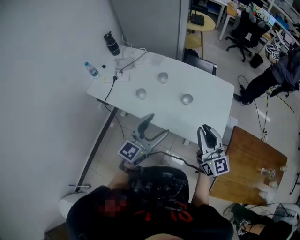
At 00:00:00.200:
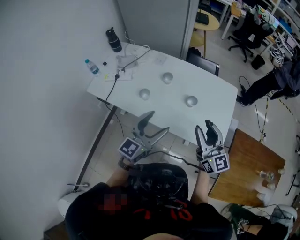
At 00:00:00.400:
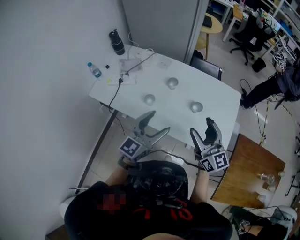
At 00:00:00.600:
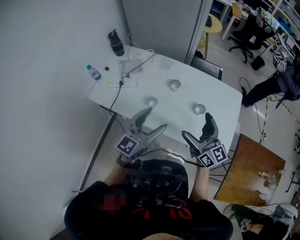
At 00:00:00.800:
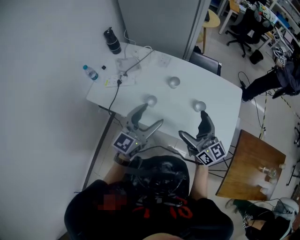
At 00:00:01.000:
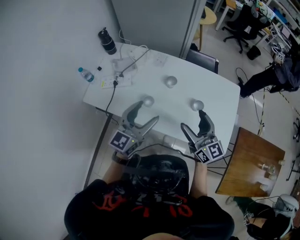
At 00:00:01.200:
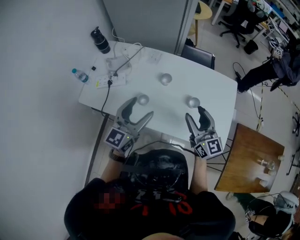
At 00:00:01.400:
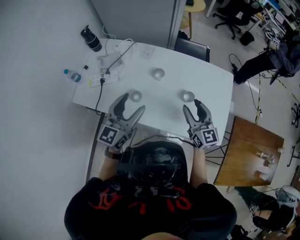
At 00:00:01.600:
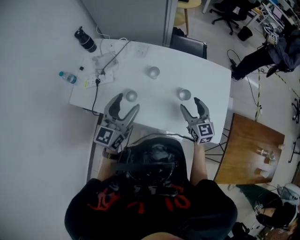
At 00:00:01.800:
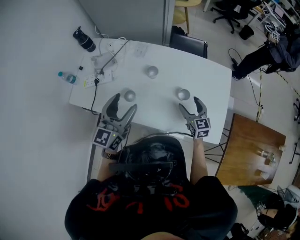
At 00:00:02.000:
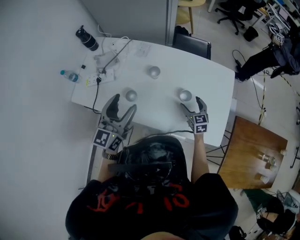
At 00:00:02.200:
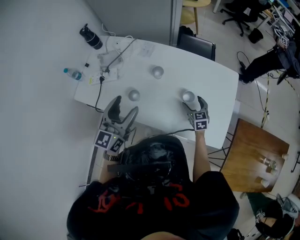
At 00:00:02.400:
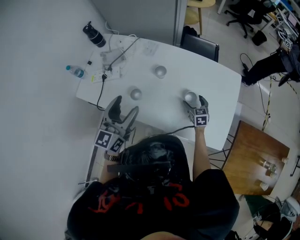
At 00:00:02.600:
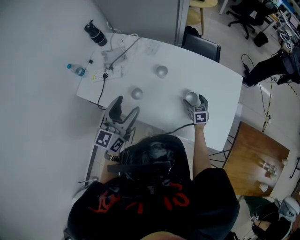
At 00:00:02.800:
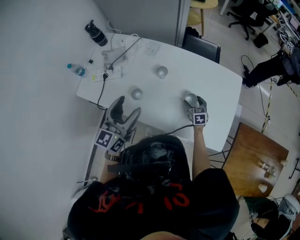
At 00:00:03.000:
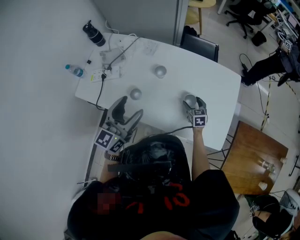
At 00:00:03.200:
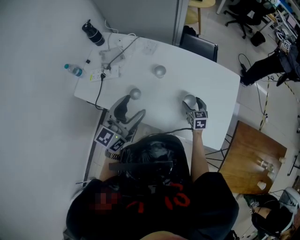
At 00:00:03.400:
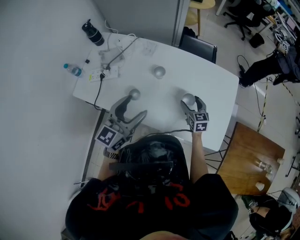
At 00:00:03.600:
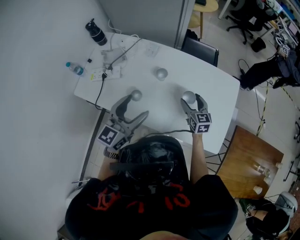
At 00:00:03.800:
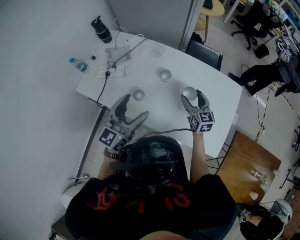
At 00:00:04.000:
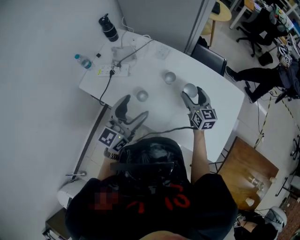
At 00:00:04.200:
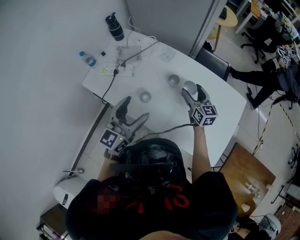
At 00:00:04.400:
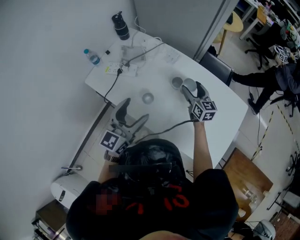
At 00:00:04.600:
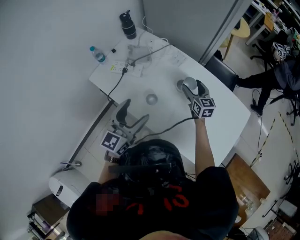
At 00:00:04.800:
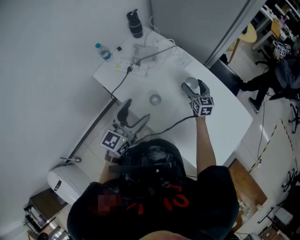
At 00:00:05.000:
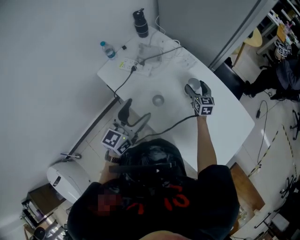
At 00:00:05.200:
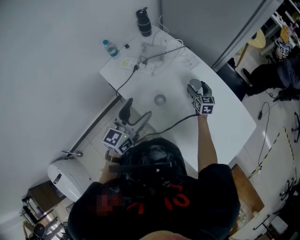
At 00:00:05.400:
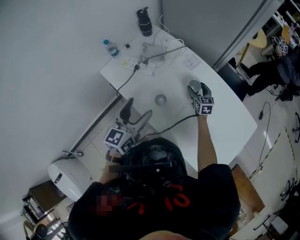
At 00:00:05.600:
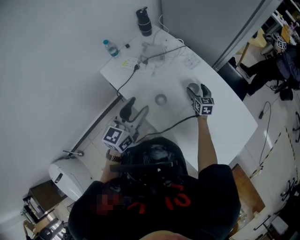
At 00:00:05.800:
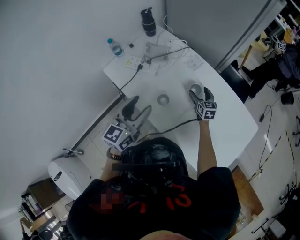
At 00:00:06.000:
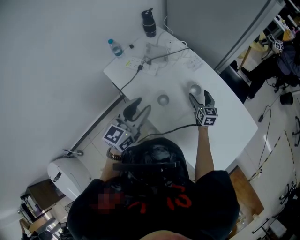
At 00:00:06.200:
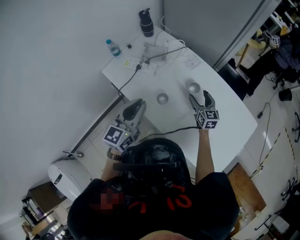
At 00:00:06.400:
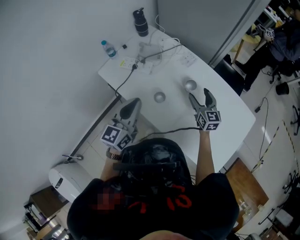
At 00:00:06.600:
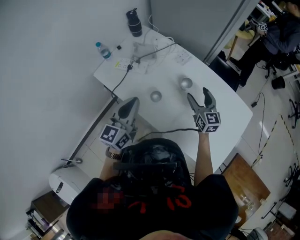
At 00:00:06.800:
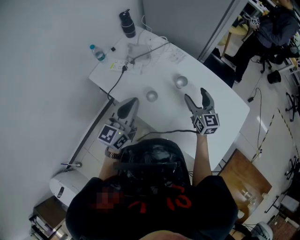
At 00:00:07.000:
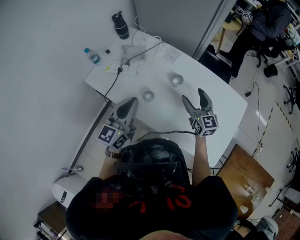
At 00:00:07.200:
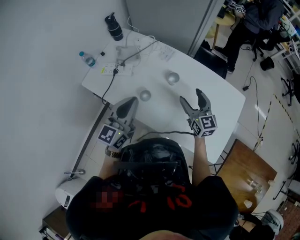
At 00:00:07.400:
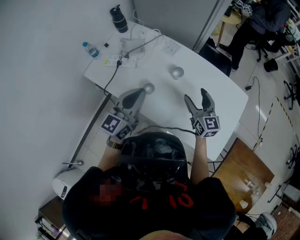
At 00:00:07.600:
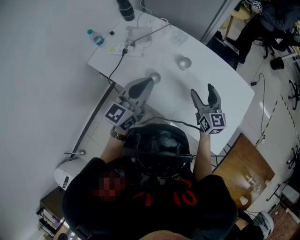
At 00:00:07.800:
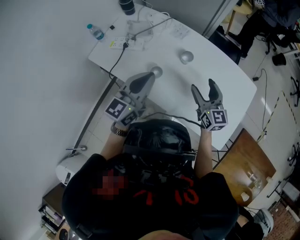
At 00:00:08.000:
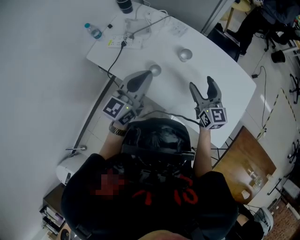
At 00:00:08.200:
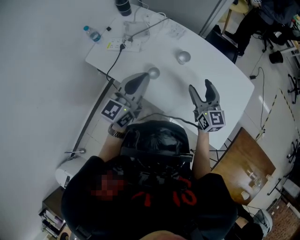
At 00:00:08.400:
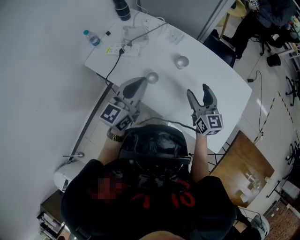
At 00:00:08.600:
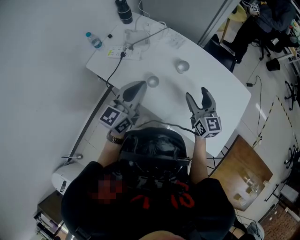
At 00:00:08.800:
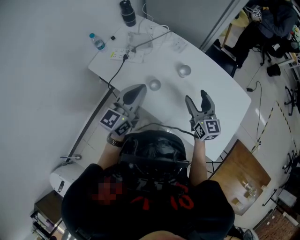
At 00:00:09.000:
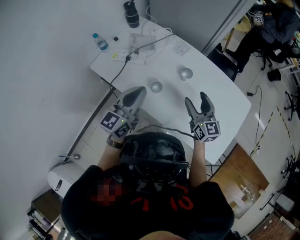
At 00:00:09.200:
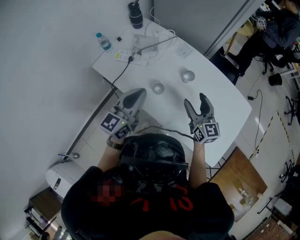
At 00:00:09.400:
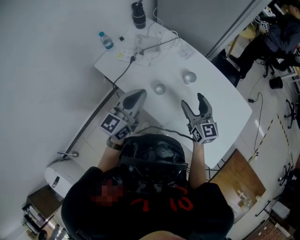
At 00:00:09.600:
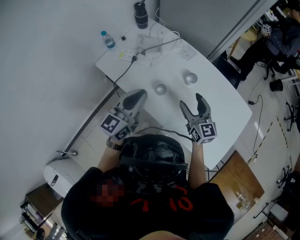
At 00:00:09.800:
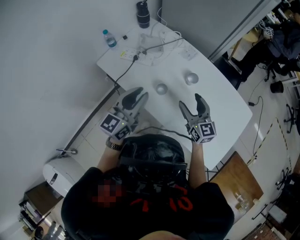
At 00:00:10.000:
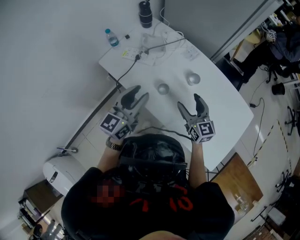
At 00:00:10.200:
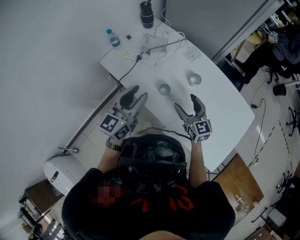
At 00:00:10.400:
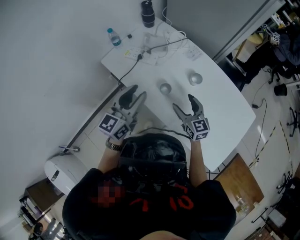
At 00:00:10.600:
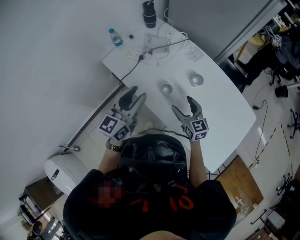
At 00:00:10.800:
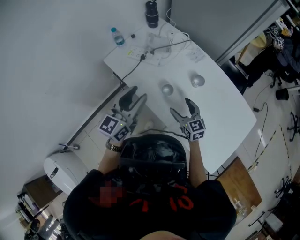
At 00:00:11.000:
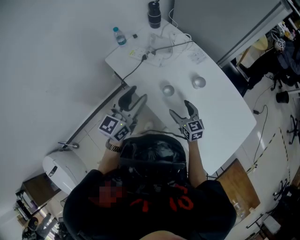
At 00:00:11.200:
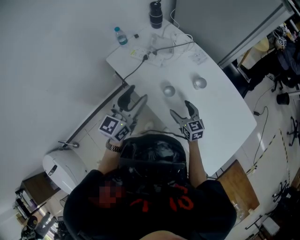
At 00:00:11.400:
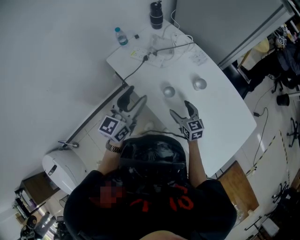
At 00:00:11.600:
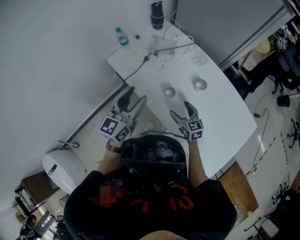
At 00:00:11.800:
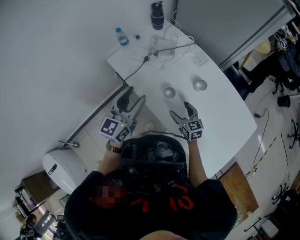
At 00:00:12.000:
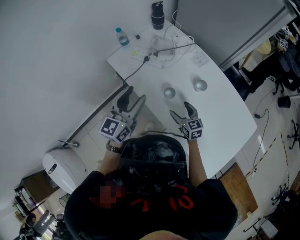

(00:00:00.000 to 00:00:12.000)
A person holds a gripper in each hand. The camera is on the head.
00:00:00.000 - 00:00:01.600: The right gripper moves forward and downward, some 25 cm, turns by roughly 20 degrees, and opens up, while the left gripper goes approximately 25 cm forward and to the left.
00:00:01.600 - 00:00:03.000: The right gripper heads downward, covering roughly 20 cm, and swivels roughly 30 degrees.
00:00:03.000 - 00:00:04.400: The right gripper shifts approximately 25 cm upward, to the left and forward, and turns by approximately 30 degrees.
00:00:04.400 - 00:00:06.000: The left gripper closes its fingers; the right gripper is displaced downward by approximately 10 cm.
00:00:06.000 - 00:00:07.600: The right gripper heads backward and upward, covering about 20 cm. Meanwhile the left gripper moves to the right, approximately 5 cm, and closes its fingers.
00:00:07.600 - 00:00:09.000: The grippers move only a little.
00:00:09.000 - 00:00:10.400: The right gripper goes some 10 cm to the left and downward. Meanwhile the left gripper moves to the left, some 5 cm, and opens its fingers.
00:00:10.400 - 00:00:12.000: The right gripper goes roughly 10 cm downward.

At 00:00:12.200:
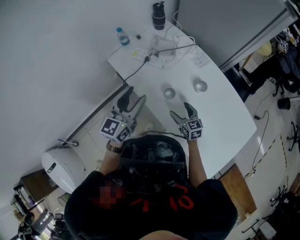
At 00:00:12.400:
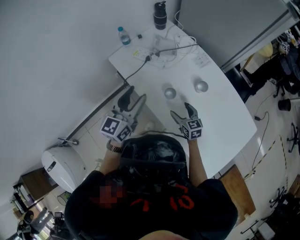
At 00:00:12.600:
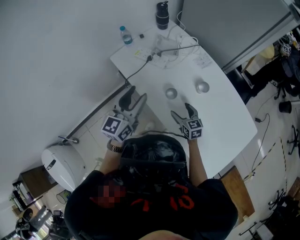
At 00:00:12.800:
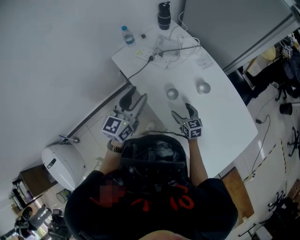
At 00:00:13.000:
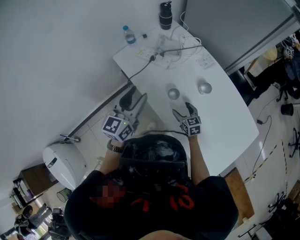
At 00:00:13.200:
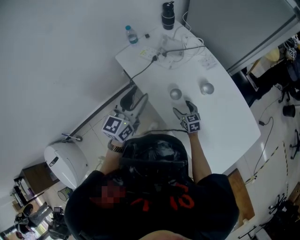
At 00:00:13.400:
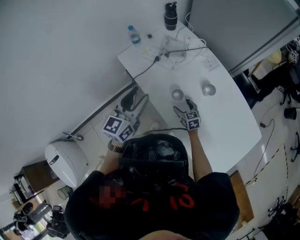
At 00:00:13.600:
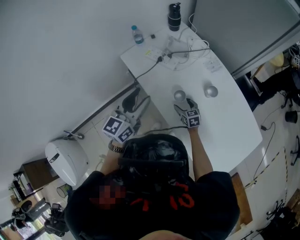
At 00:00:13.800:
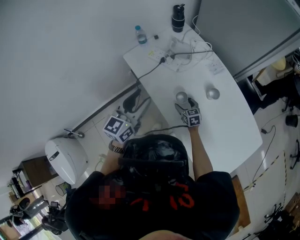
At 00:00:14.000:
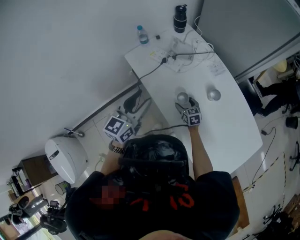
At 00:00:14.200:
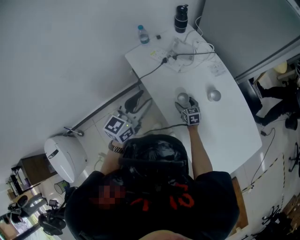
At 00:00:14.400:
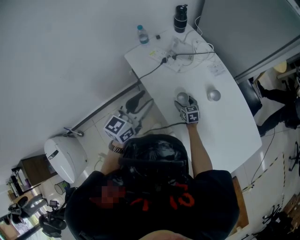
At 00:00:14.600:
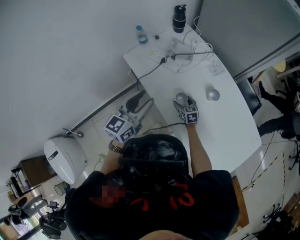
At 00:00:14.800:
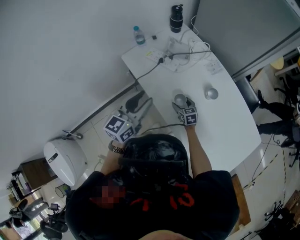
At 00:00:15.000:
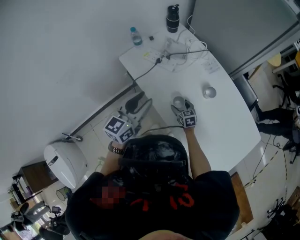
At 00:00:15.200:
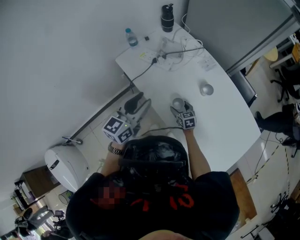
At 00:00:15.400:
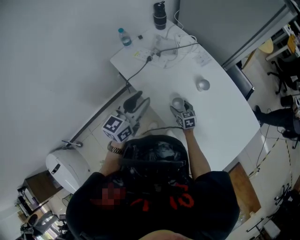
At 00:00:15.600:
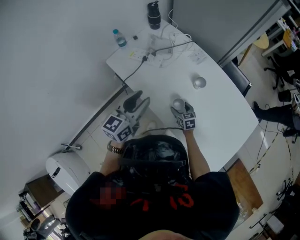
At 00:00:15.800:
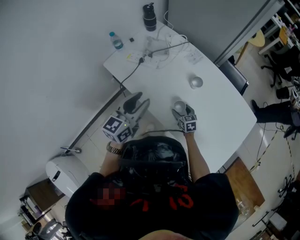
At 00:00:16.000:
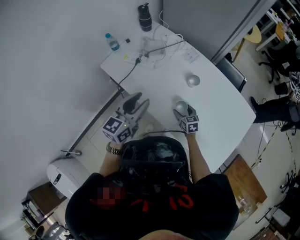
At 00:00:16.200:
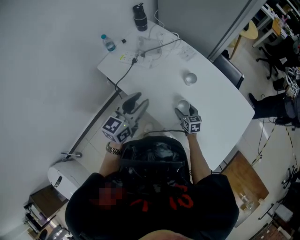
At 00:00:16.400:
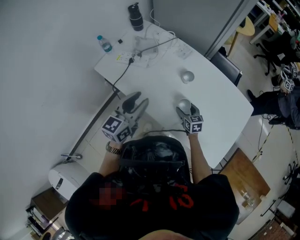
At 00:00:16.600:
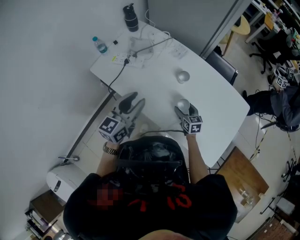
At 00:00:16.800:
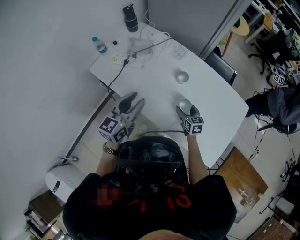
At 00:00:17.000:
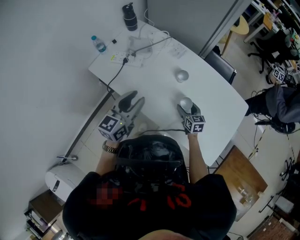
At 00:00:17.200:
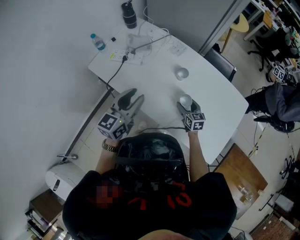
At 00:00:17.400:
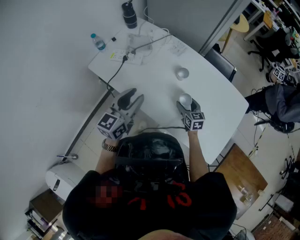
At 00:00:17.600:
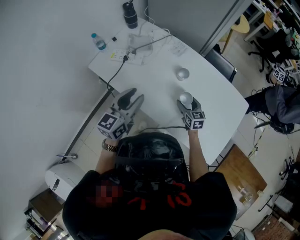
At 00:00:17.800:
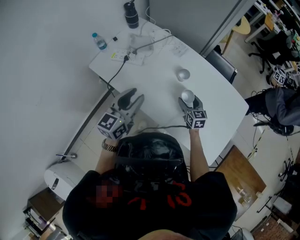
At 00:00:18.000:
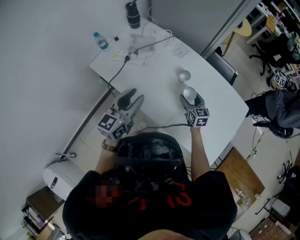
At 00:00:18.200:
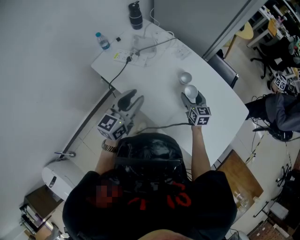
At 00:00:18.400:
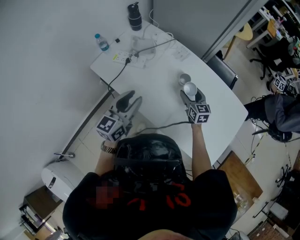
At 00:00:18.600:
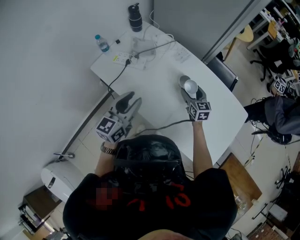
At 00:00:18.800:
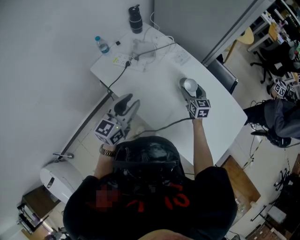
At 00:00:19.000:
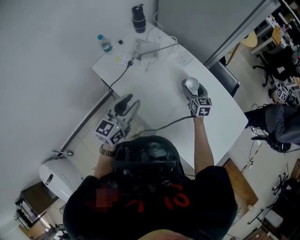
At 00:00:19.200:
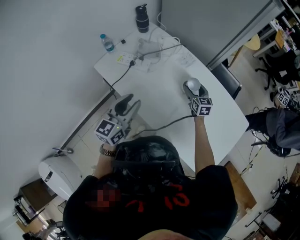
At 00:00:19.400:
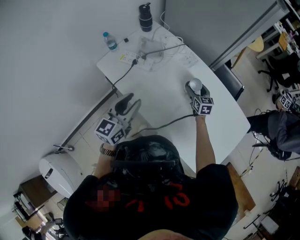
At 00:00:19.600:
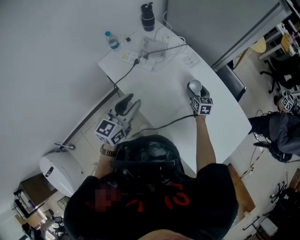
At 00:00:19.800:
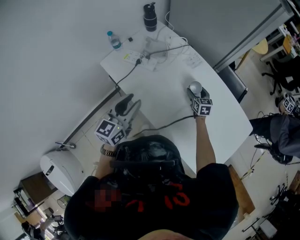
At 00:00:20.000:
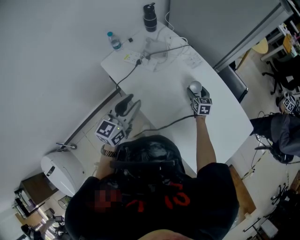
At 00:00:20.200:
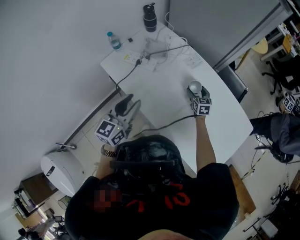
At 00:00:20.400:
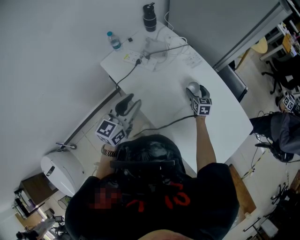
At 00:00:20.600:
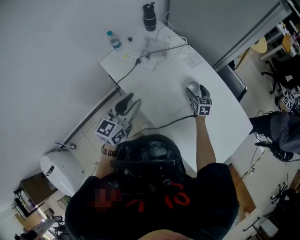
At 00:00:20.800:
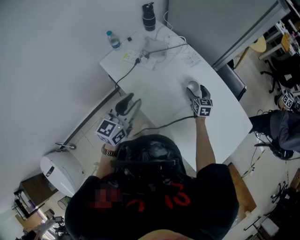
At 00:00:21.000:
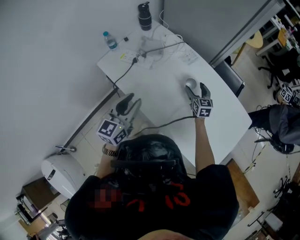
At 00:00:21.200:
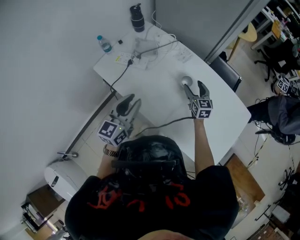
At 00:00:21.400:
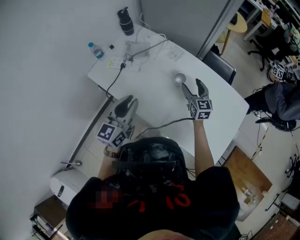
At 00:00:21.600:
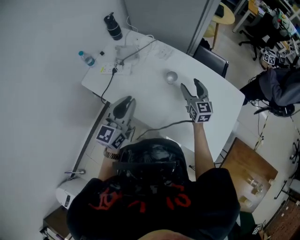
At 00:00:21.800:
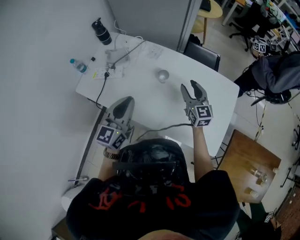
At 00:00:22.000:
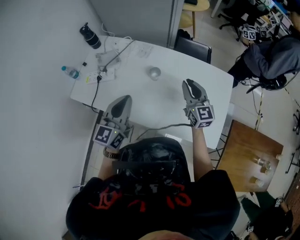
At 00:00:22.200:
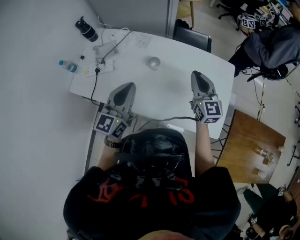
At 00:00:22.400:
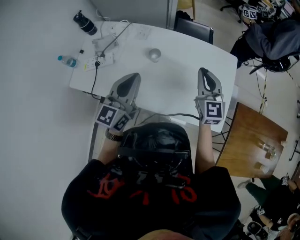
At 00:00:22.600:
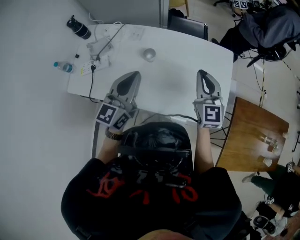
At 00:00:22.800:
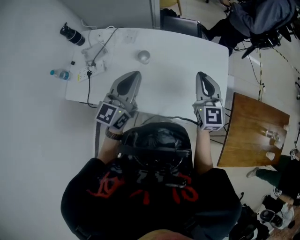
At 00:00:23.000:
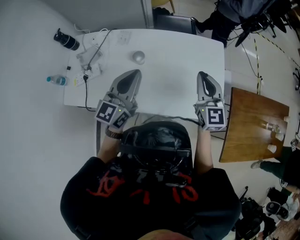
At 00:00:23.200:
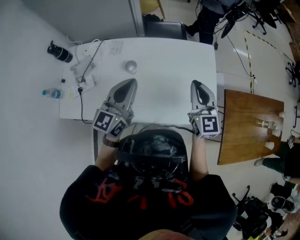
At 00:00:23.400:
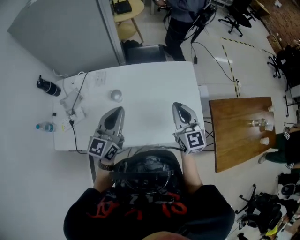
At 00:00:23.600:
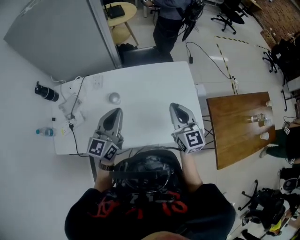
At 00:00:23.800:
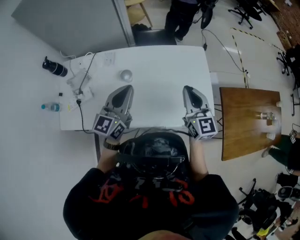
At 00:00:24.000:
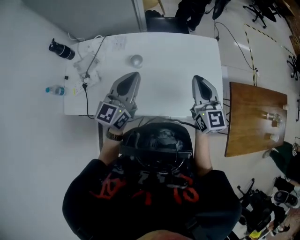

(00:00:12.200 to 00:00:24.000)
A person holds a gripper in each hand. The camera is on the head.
00:00:12.200 - 00:00:13.600: The right gripper heads downward and forward, covering about 10 cm.
00:00:13.600 - 00:00:15.200: The grippers stay close to where they were, moving slightly.
00:00:15.200 - 00:00:16.600: The left gripper is displaced to the right by about 10 cm. Meanwhile the right gripper moves to the right, roughly 15 cm, and swivels roughly 20 degrees.
00:00:16.600 - 00:00:18.200: The right gripper travels upward and forward by roughly 10 cm.
00:00:18.200 - 00:00:19.600: The right gripper goes roughly 10 cm forward and downward.
00:00:19.600 - 00:00:21.000: The right gripper moves some 5 cm.
00:00:21.000 - 00:00:22.600: The right gripper shifts by roughly 35 cm, rotates roughly 30 degrees, and closes; the left gripper moves approximately 20 cm, turns by some 30 degrees, and closes up.
